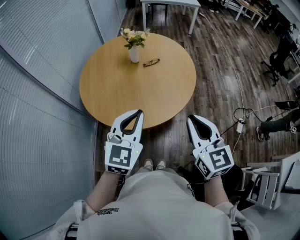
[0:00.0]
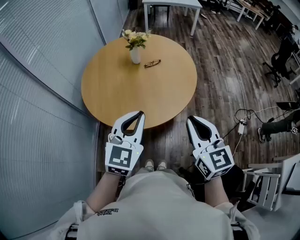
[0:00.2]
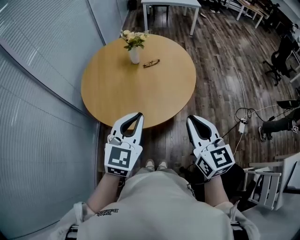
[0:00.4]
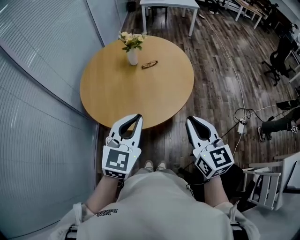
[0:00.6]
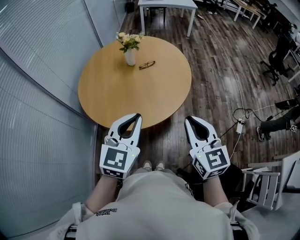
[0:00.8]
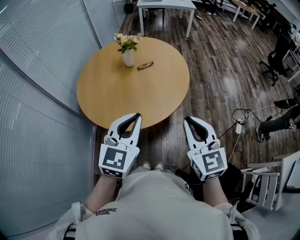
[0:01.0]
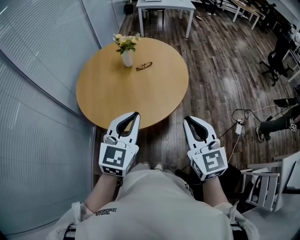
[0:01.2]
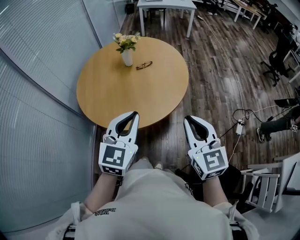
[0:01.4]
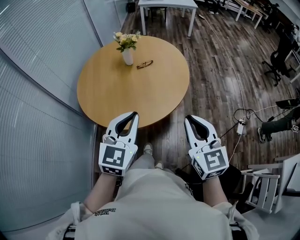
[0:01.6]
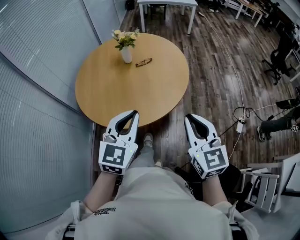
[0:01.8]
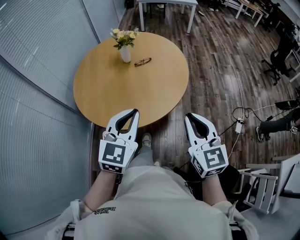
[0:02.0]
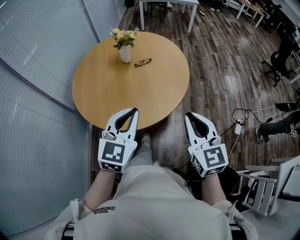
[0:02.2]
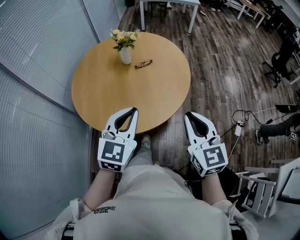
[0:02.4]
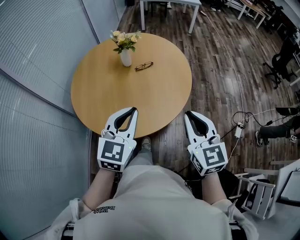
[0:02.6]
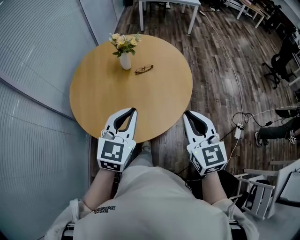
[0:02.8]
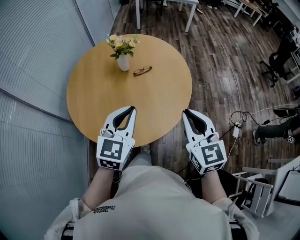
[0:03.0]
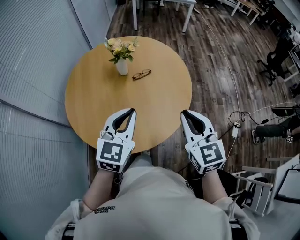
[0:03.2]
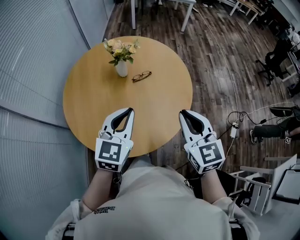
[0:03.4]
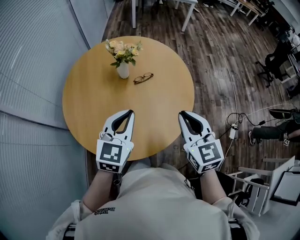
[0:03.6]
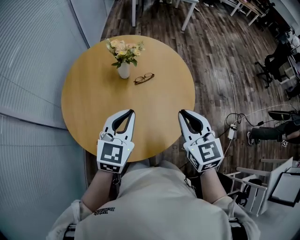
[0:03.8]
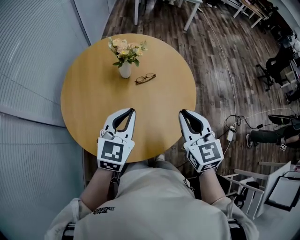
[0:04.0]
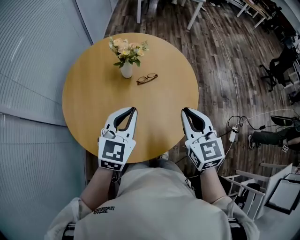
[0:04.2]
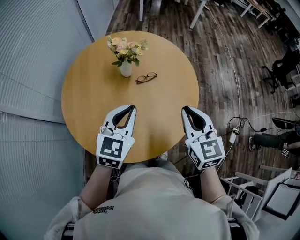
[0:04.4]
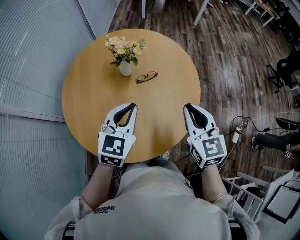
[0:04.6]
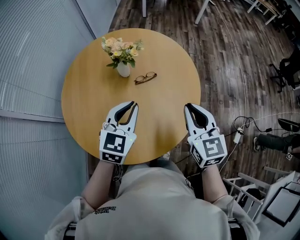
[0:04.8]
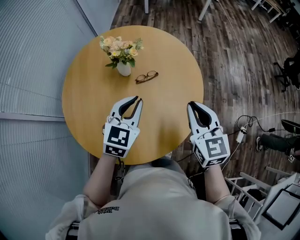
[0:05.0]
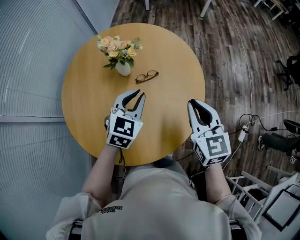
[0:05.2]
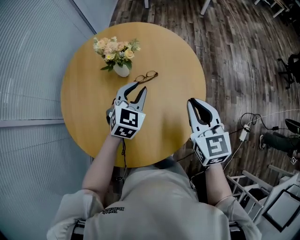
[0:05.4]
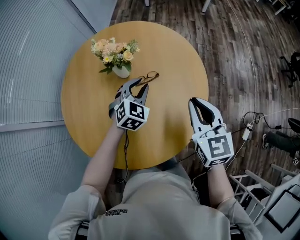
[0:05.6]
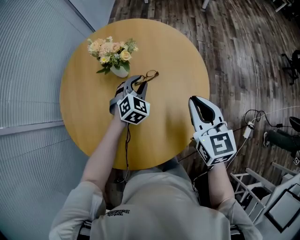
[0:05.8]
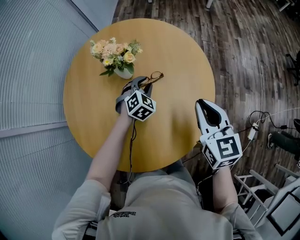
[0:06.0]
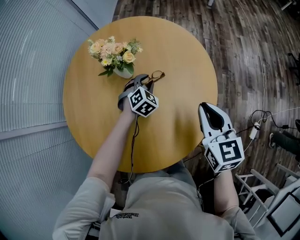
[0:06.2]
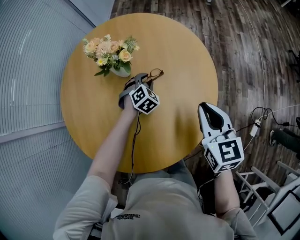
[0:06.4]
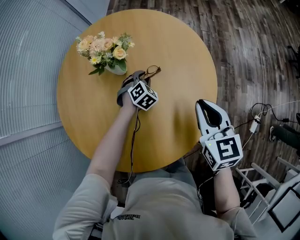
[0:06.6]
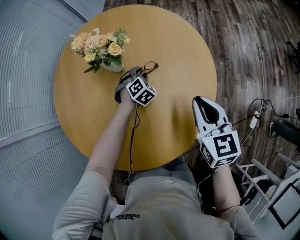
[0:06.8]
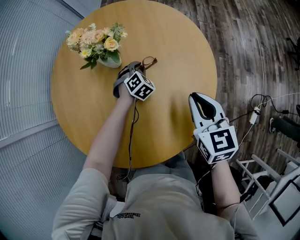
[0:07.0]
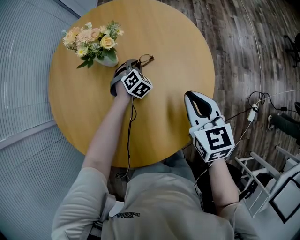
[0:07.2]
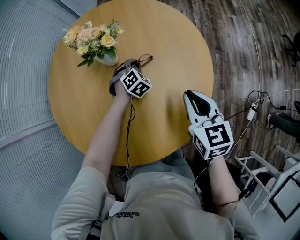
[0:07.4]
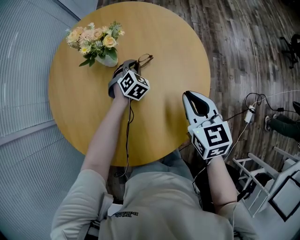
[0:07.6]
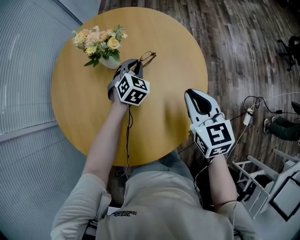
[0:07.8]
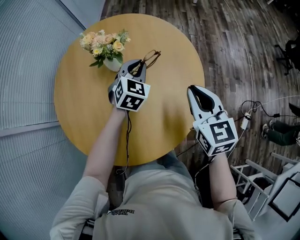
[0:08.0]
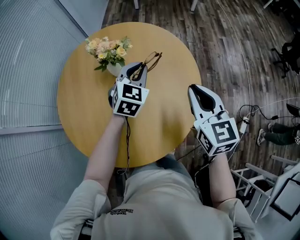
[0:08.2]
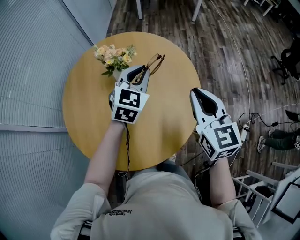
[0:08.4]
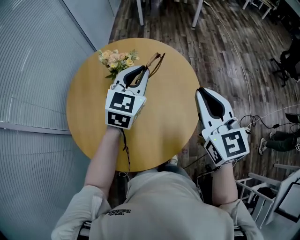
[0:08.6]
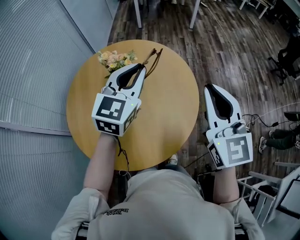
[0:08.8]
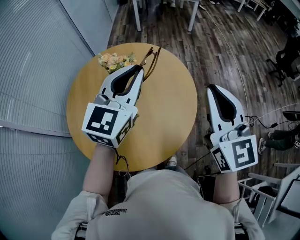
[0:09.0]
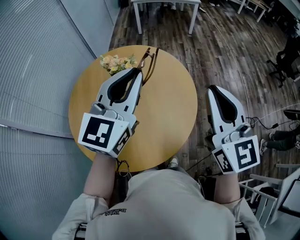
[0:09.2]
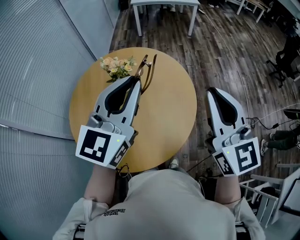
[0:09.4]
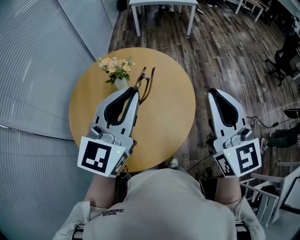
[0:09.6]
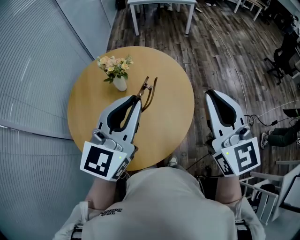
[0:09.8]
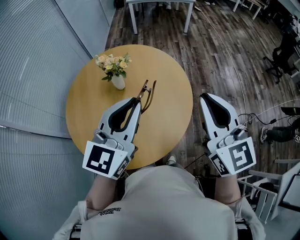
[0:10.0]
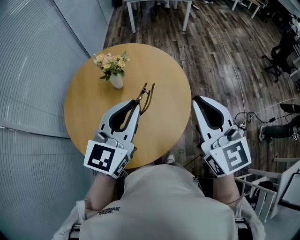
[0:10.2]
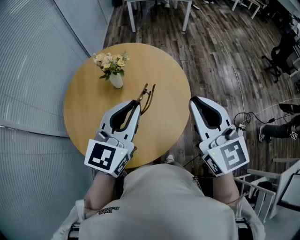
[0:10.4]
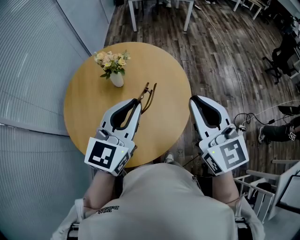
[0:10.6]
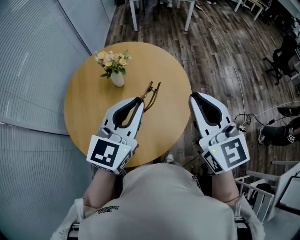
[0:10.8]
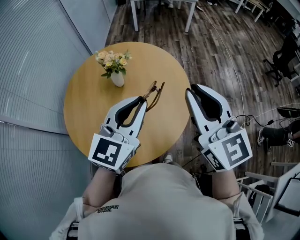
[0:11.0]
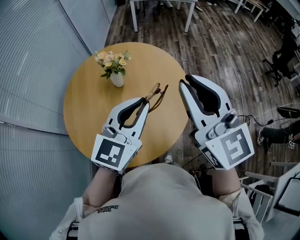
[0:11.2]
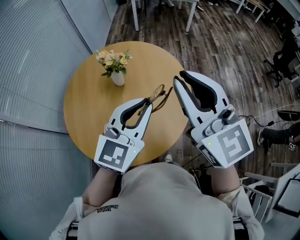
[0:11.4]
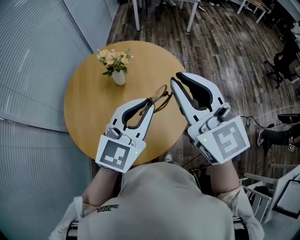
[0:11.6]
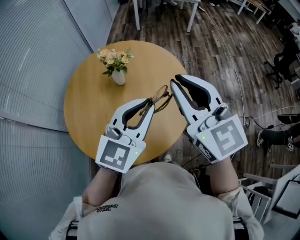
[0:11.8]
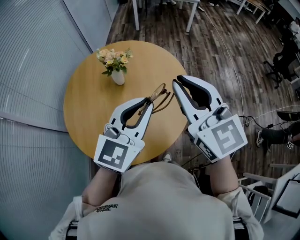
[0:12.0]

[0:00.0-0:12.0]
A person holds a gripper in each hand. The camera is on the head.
0:00.0 to 0:01.6: Both grippers travel together to the right, approximately 5 cm.
0:01.6 to 0:03.0: The two grippers go some 15 cm forward.
0:03.0 to 0:04.4: Both grippers travel together forward, approximately 15 cm.
0:04.4 to 0:06.0: The right gripper heads forward, downward and to the right, covering about 15 cm. The left gripper shifts roughly 35 cm downward and forward, turns by roughly 40 degrees, and opens.
0:06.0 to 0:07.6: The two grippers go roughly 5 cm downward.
0:07.6 to 0:09.0: The right gripper is displaced upward by about 30 cm, and tilts its fingers about 30 degrees upward; the left gripper moves upward, about 50 cm, and points its fingers approximately 50 degrees further upward.
0:09.0 to 0:10.4: The right gripper moves about 5 cm; the left gripper heads backward, covering roughly 10 cm.
0:10.4 to 0:12.0: The right gripper travels to the left by roughly 5 cm.

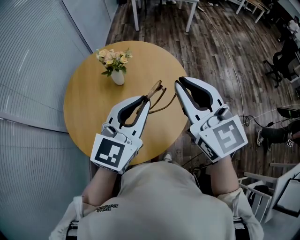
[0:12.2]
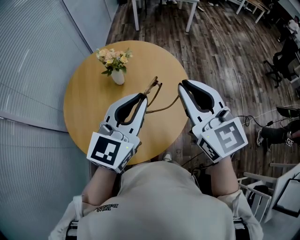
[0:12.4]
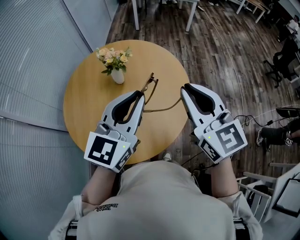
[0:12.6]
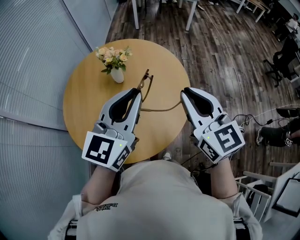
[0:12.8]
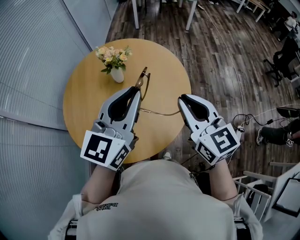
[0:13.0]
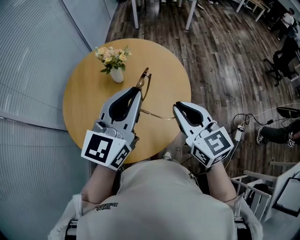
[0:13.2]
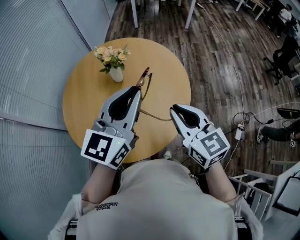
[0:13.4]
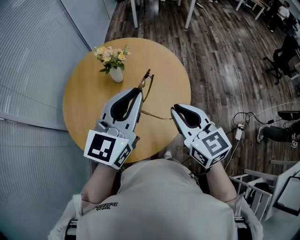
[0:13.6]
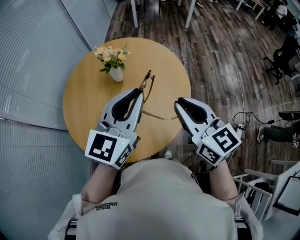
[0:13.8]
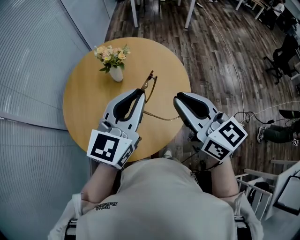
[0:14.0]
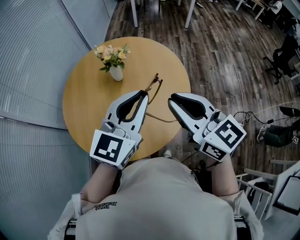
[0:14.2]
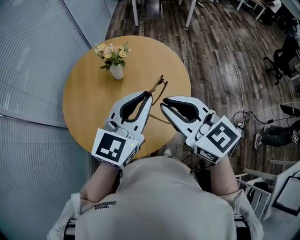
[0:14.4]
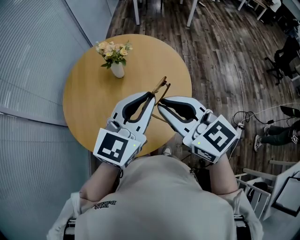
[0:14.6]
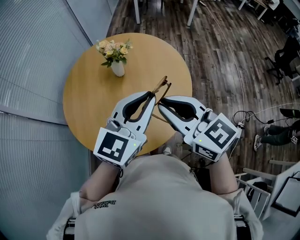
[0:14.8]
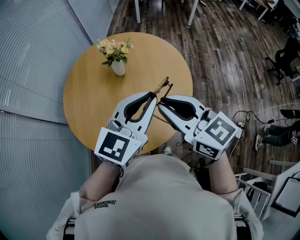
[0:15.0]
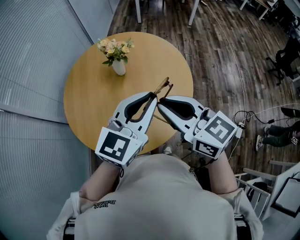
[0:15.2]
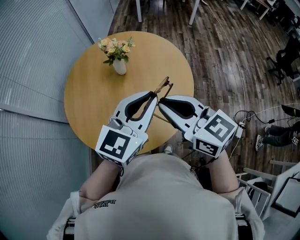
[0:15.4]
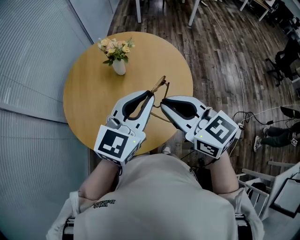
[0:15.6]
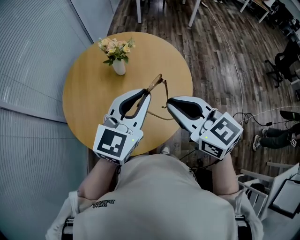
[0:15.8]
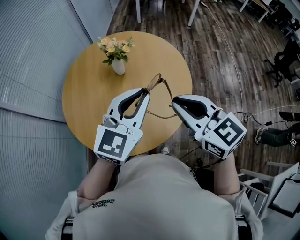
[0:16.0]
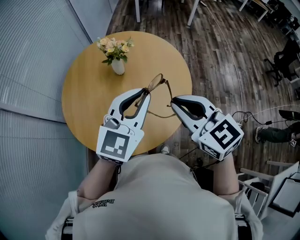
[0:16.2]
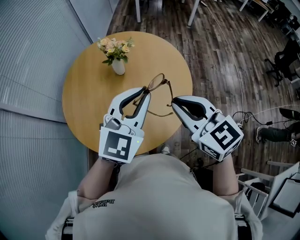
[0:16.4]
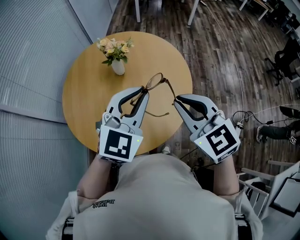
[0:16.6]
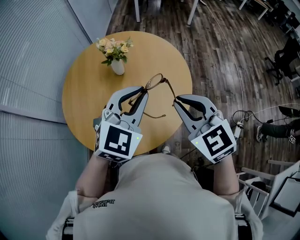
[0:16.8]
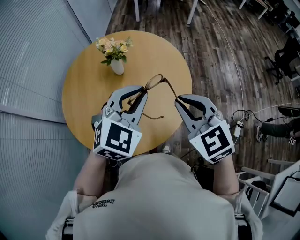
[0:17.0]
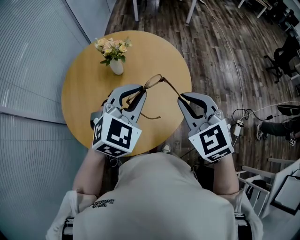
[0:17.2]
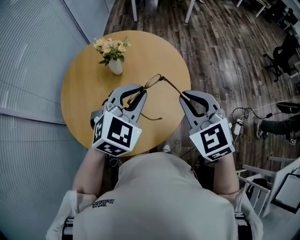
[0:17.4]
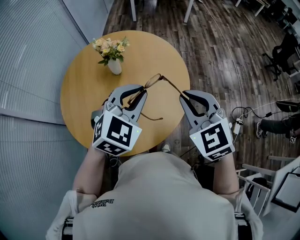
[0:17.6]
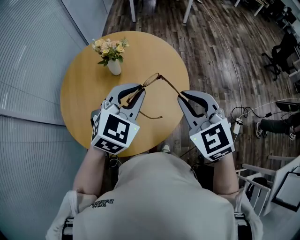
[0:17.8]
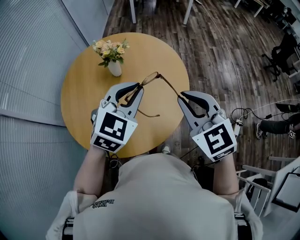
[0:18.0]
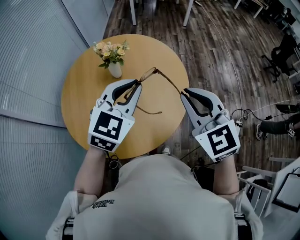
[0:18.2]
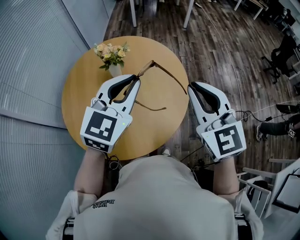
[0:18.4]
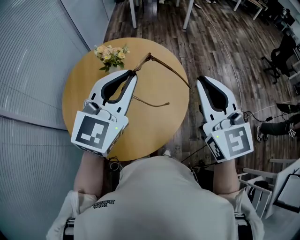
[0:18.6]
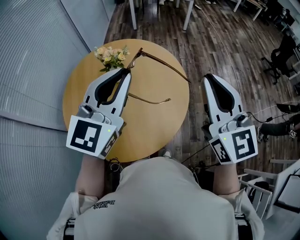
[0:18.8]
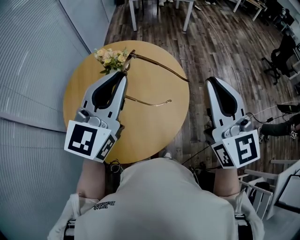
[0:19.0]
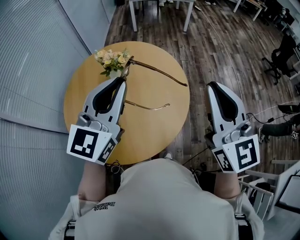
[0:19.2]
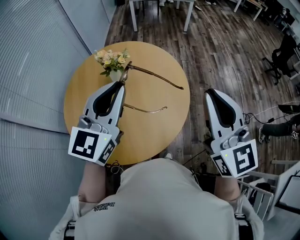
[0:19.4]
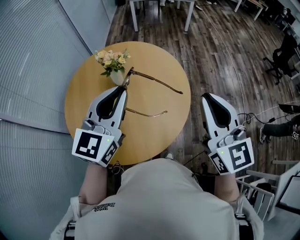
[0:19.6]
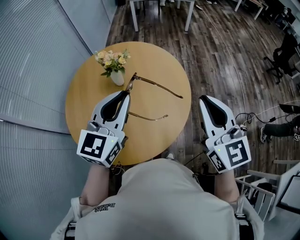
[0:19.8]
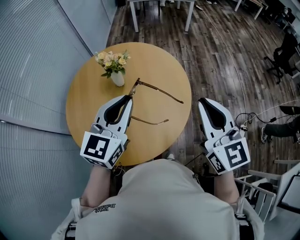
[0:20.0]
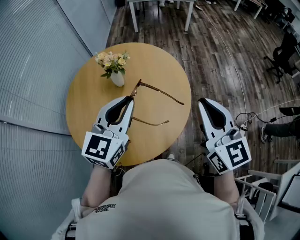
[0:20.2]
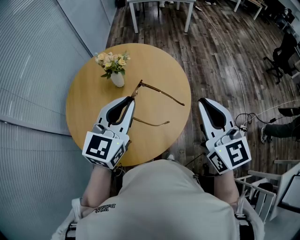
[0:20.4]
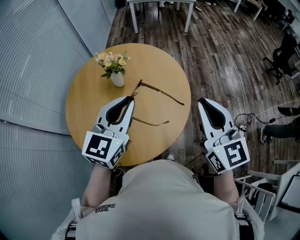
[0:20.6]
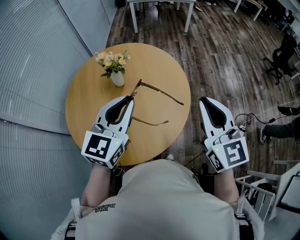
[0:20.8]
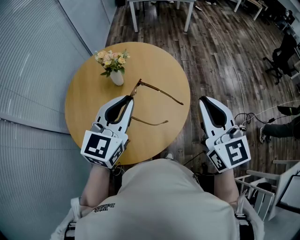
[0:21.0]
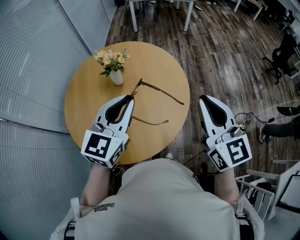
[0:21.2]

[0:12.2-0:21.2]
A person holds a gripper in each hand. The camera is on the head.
0:12.2 to 0:13.8: The right gripper heads downward, covering approximately 10 cm.
0:13.8 to 0:15.2: The right gripper is displaced to the left by about 5 cm.
0:15.2 to 0:16.6: The right gripper rotates roughly 30 degrees. Meanwhile the left gripper changes its angle by some 20 degrees.
0:16.6 to 0:18.2: There are only small adjustments of the grippers.
0:18.2 to 0:19.8: The right gripper shifts approximately 5 cm to the right, moves approximately 10 cm upward and comes back, and rotates some 30 degrees. Meanwhile the left gripper moves approximately 10 cm upward and comes back, and swivels approximately 20 degrees.
0:19.8 to 0:21.2: The grippers stay close to where they were, moving slightly.

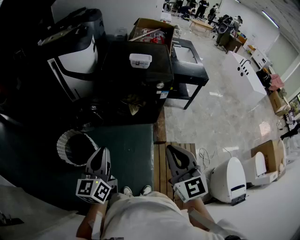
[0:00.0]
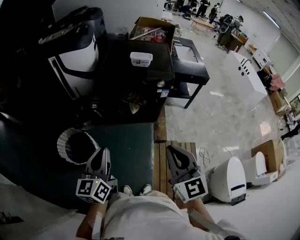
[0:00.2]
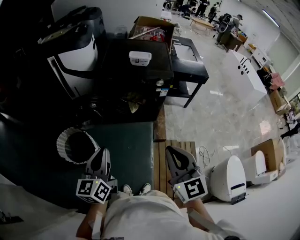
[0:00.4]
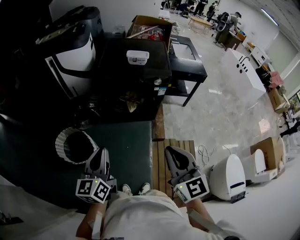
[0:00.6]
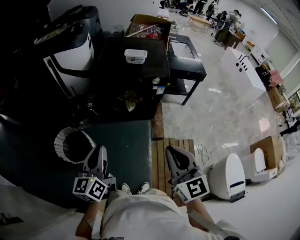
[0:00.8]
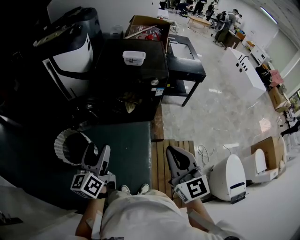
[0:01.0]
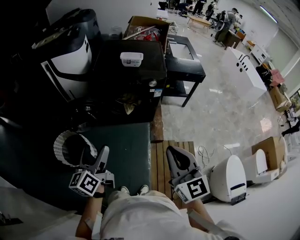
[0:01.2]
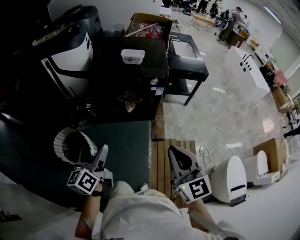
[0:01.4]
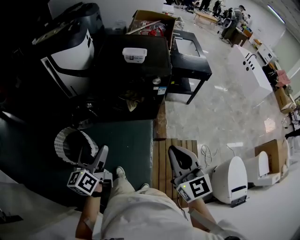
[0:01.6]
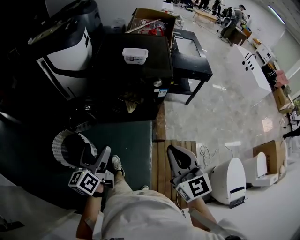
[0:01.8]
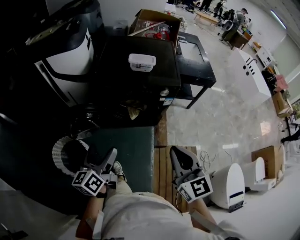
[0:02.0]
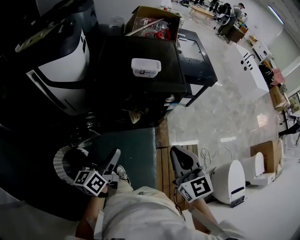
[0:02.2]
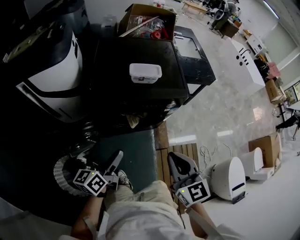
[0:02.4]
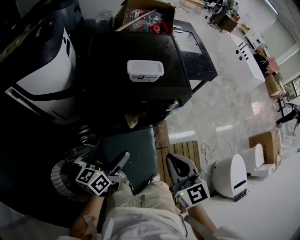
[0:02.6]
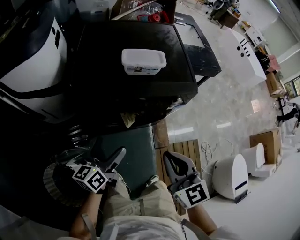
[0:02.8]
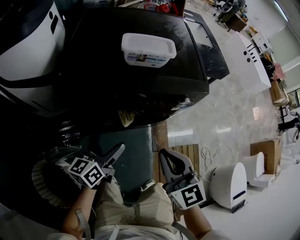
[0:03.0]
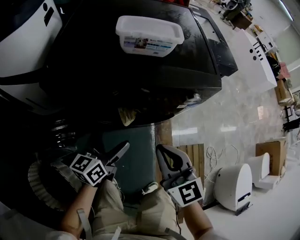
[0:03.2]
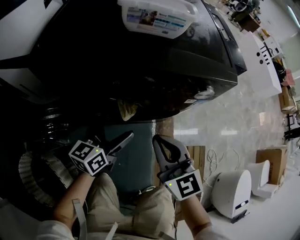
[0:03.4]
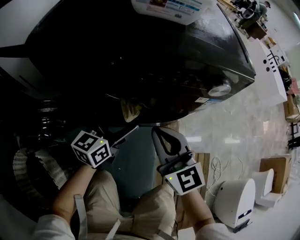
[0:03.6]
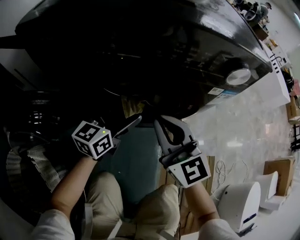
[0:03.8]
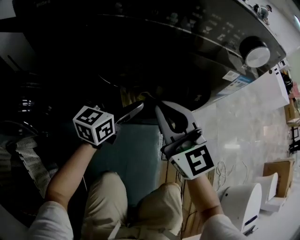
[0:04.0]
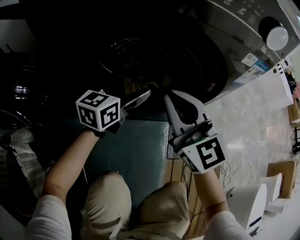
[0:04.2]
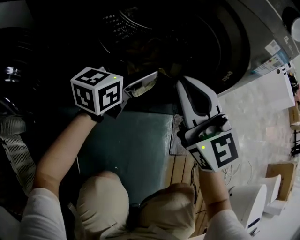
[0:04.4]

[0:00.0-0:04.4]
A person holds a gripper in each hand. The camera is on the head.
0:00.0 to 0:01.4: The left gripper moves roughly 5 cm, and opens. The right gripper moves to the right, roughly 10 cm.
0:01.4 to 0:03.0: The pair of grippers is taken forward, about 40 cm. The grippers both shift downward by roughly 30 cm. The left gripper turns by some 30 degrees.
0:03.0 to 0:04.4: The right gripper moves downward, approximately 35 cm, and changes its angle by some 20 degrees. The left gripper goes approximately 35 cm downward and forward, and swivels roughly 20 degrees.
